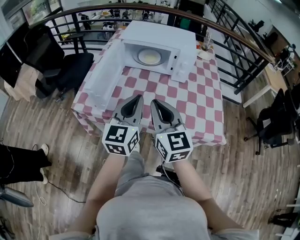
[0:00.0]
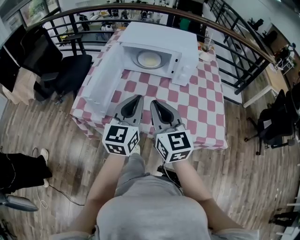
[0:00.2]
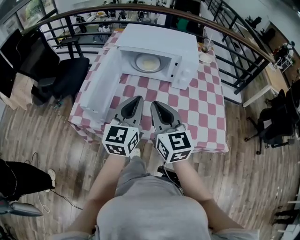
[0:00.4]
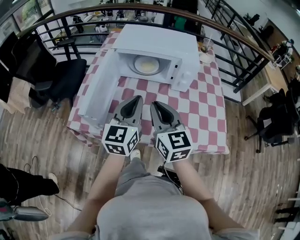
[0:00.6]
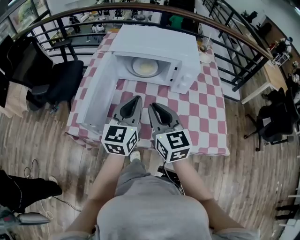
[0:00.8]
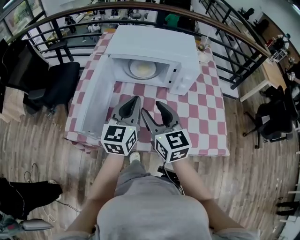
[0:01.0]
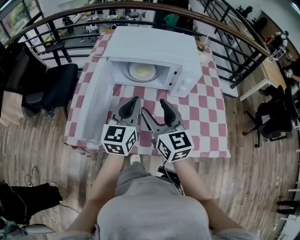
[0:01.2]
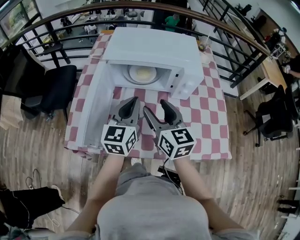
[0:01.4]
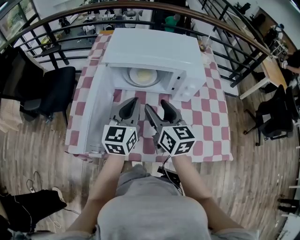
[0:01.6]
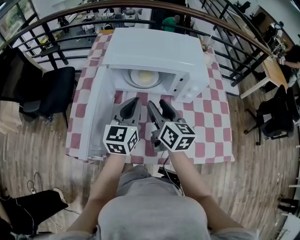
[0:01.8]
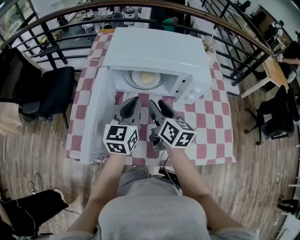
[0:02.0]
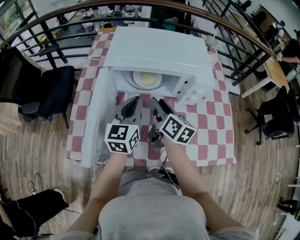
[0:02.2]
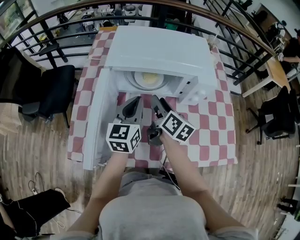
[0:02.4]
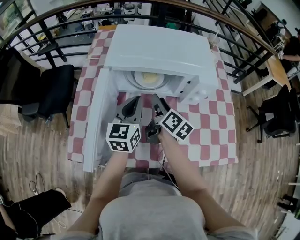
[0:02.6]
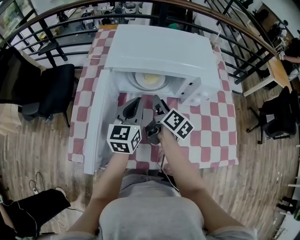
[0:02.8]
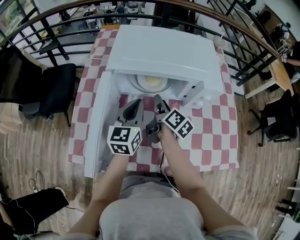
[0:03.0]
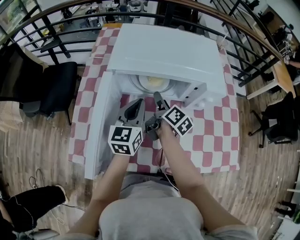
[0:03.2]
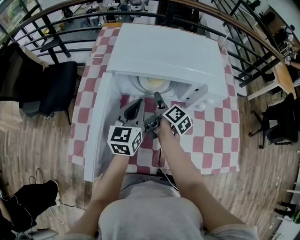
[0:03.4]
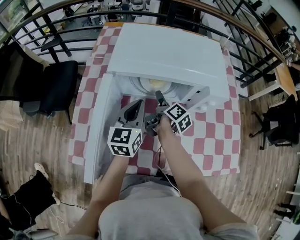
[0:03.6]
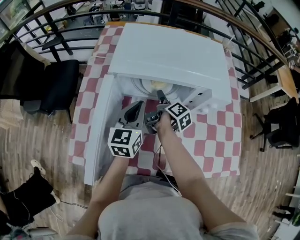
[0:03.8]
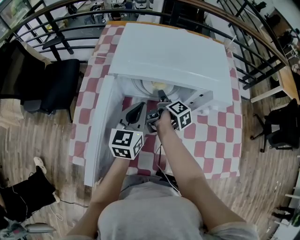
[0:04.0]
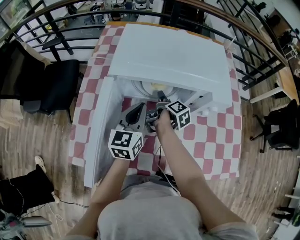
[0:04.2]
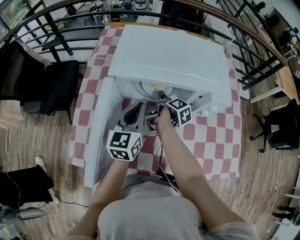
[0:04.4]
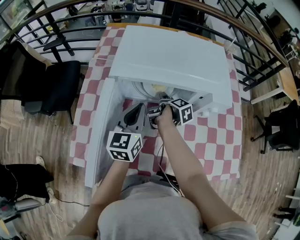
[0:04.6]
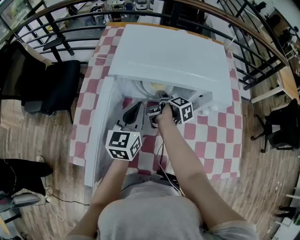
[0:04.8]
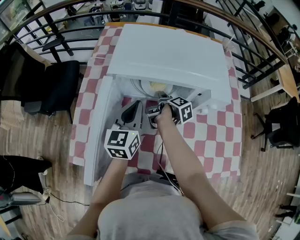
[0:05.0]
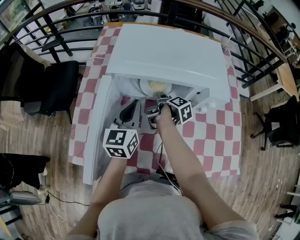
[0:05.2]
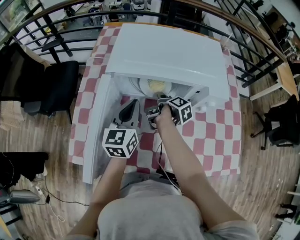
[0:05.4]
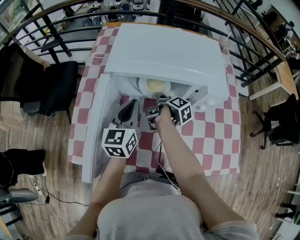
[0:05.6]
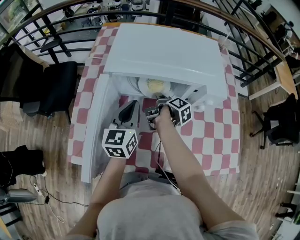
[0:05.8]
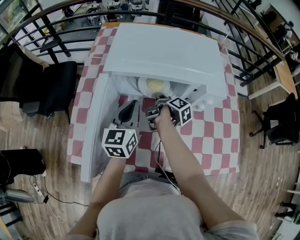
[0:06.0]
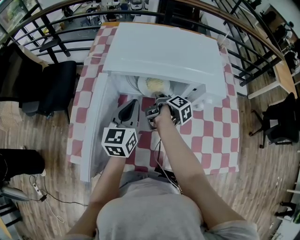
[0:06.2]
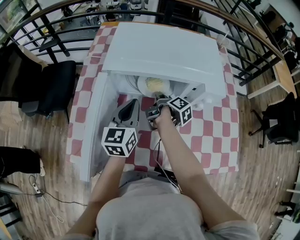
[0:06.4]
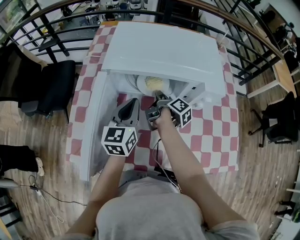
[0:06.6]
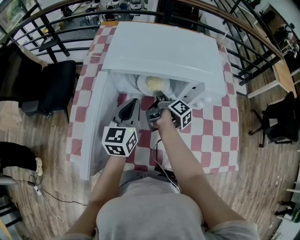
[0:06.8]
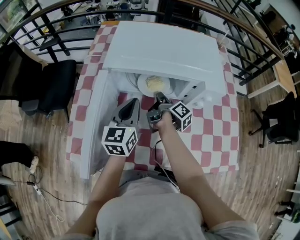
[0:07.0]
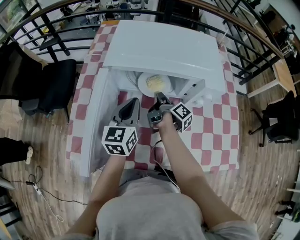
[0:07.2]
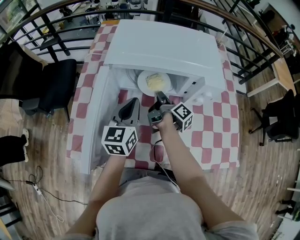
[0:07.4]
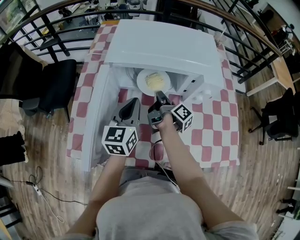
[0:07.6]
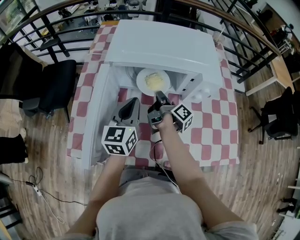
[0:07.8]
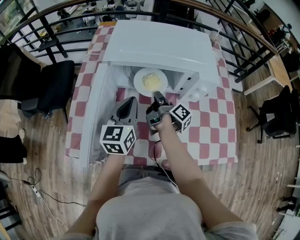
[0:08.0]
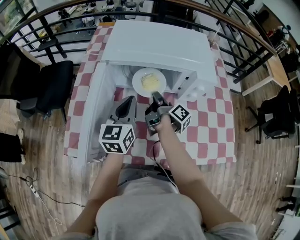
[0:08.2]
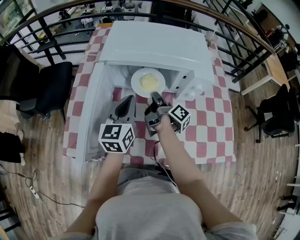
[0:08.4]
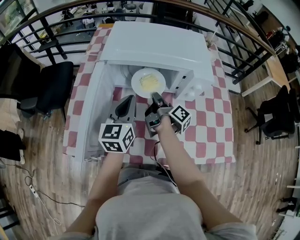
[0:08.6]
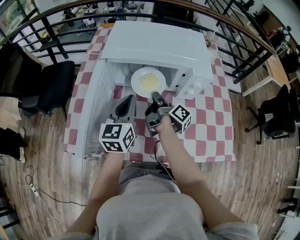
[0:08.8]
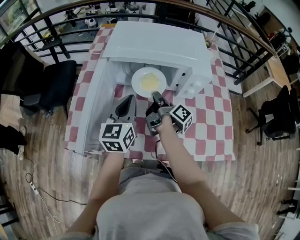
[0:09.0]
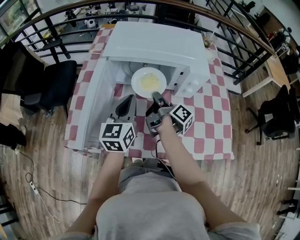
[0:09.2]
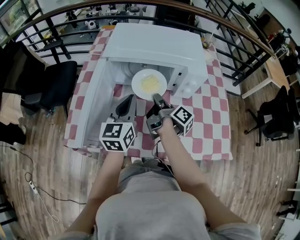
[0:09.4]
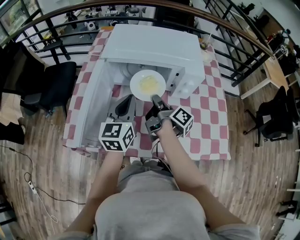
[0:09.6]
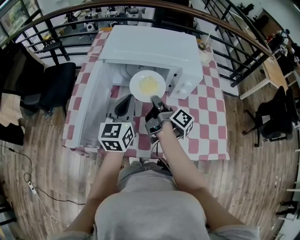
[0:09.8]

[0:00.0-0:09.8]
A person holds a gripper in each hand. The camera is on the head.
0:00.0 to 0:01.4: The grippers both shift forward by about 20 cm. The right gripper opens its fingers.
0:01.4 to 0:02.8: The left gripper heads forward and downward, covering about 10 cm. Meanwhile the right gripper travels forward and downward by some 20 cm, and twists approximately 50 degrees clockwise, seen from behind.
0:02.8 to 0:04.2: The right gripper heads downward and forward, covering approximately 10 cm, and turns by some 30 degrees.
0:04.2 to 0:05.6: The right gripper closes.
0:05.6 to 0:07.0: The grippers make only small movements.
0:07.0 to 0:08.4: The right gripper is displaced backward by roughly 5 cm.
0:08.4 to 0:09.8: The right gripper is displaced upward and backward by approximately 10 cm, while the left gripper ends up approximately 5 cm from where it was.

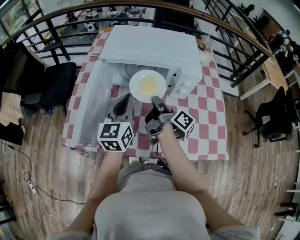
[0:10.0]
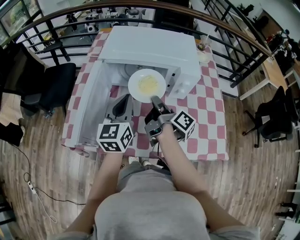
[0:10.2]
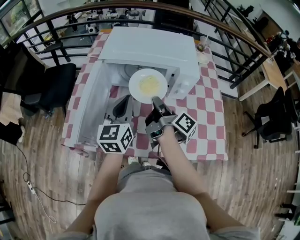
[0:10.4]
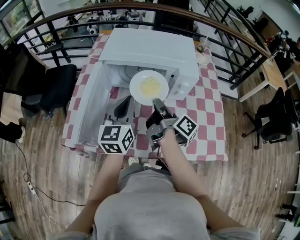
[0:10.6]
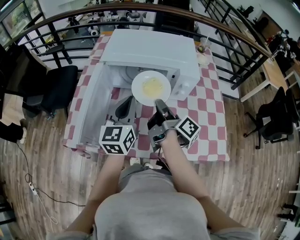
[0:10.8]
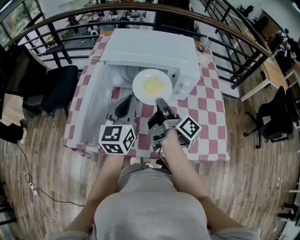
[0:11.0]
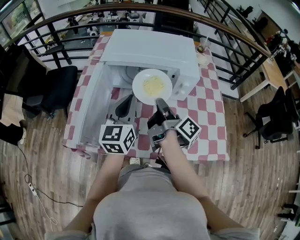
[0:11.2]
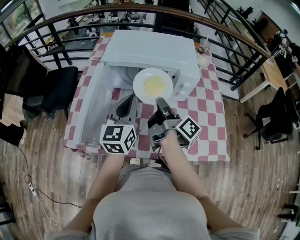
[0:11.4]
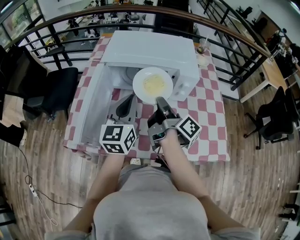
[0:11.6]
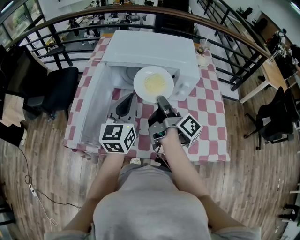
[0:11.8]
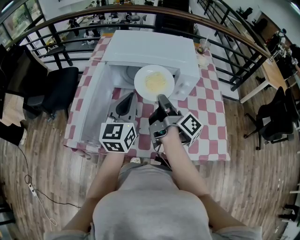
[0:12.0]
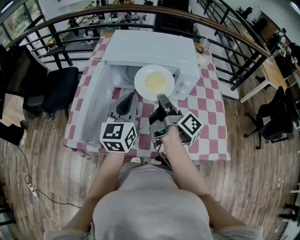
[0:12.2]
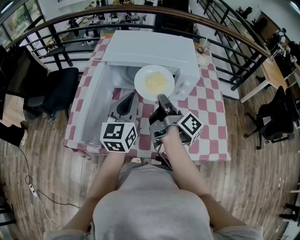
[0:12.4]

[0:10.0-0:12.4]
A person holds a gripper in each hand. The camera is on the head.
0:10.0 to 0:11.2: The right gripper ends up about 5 cm from where it was.
0:11.2 to 0:12.4: The grippers stay close to where they were, moving slightly.

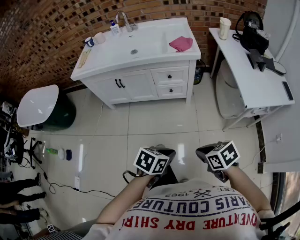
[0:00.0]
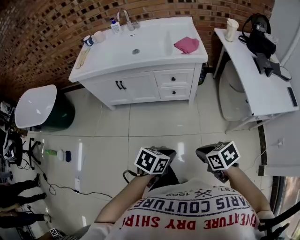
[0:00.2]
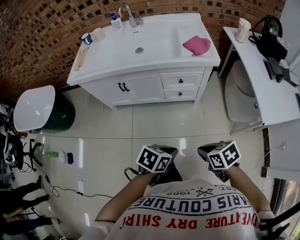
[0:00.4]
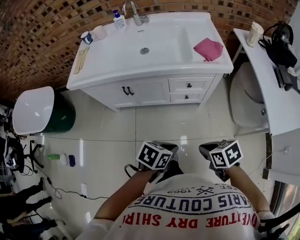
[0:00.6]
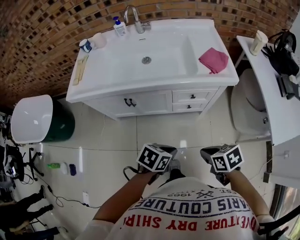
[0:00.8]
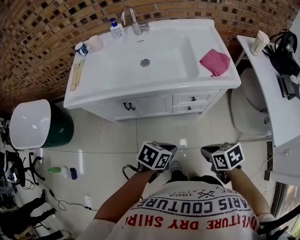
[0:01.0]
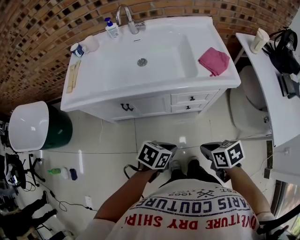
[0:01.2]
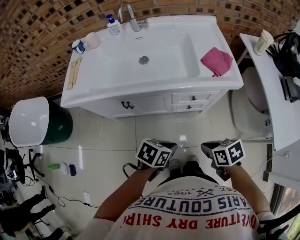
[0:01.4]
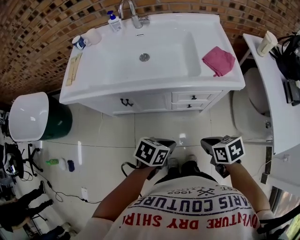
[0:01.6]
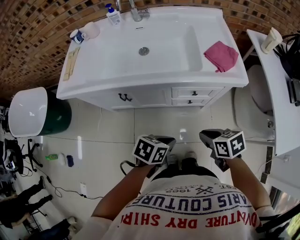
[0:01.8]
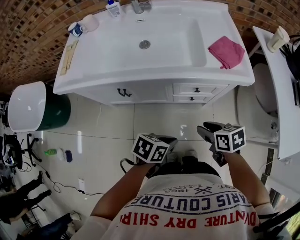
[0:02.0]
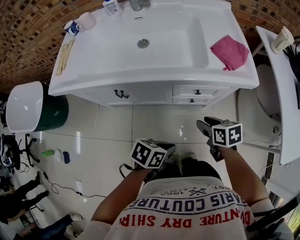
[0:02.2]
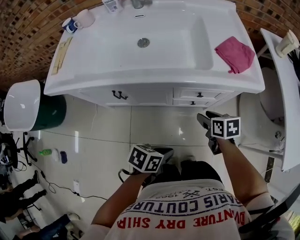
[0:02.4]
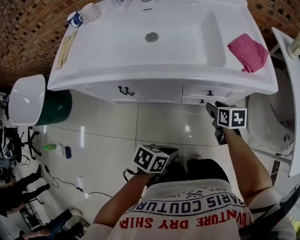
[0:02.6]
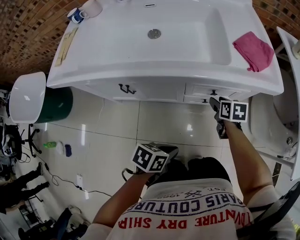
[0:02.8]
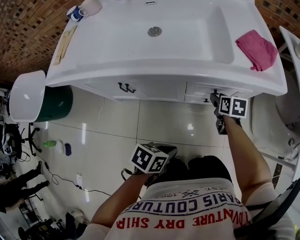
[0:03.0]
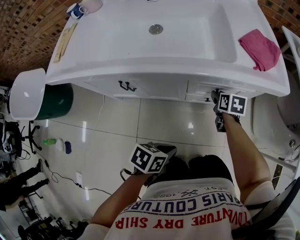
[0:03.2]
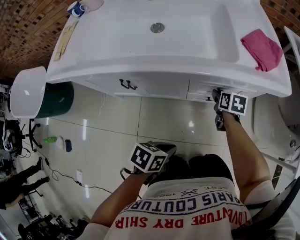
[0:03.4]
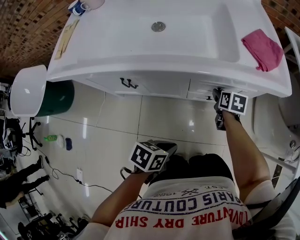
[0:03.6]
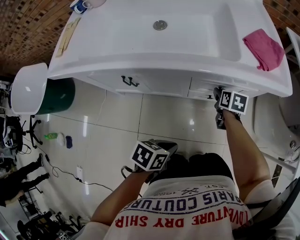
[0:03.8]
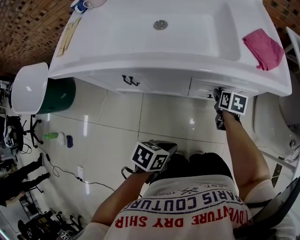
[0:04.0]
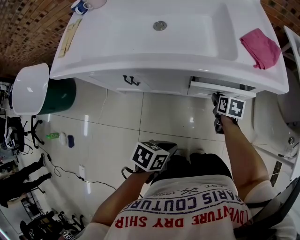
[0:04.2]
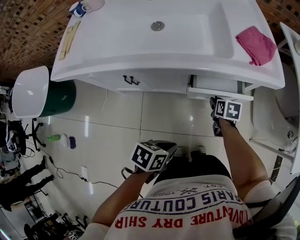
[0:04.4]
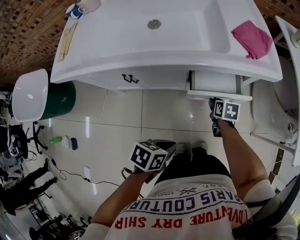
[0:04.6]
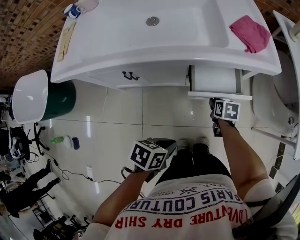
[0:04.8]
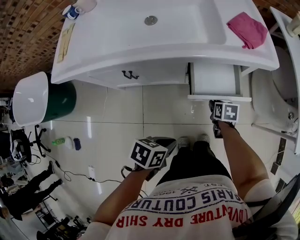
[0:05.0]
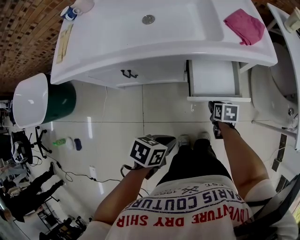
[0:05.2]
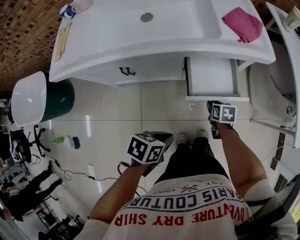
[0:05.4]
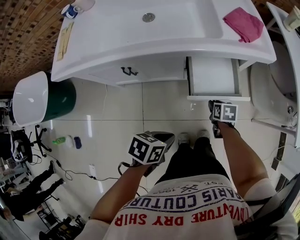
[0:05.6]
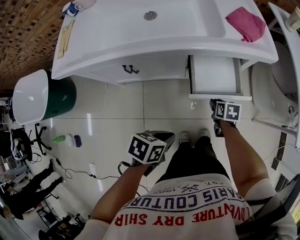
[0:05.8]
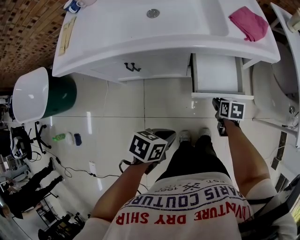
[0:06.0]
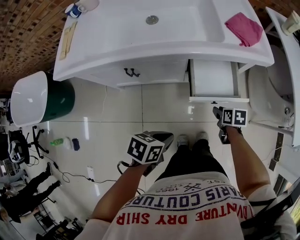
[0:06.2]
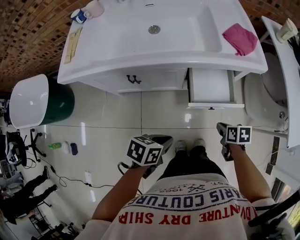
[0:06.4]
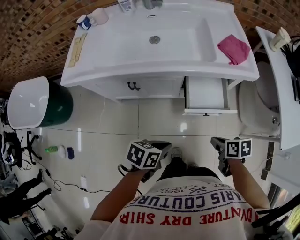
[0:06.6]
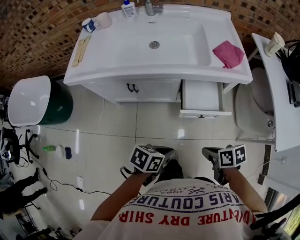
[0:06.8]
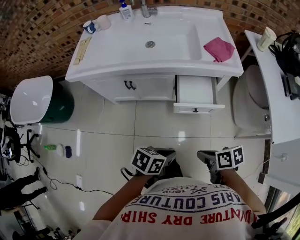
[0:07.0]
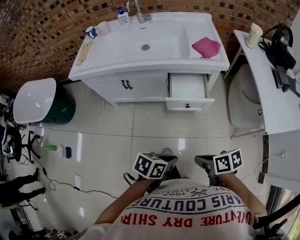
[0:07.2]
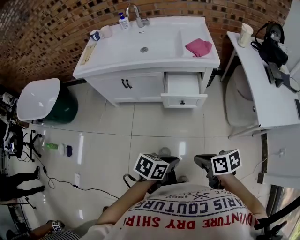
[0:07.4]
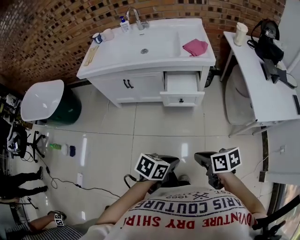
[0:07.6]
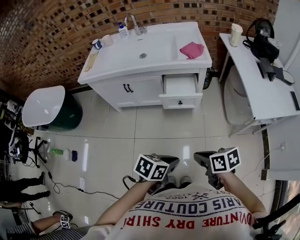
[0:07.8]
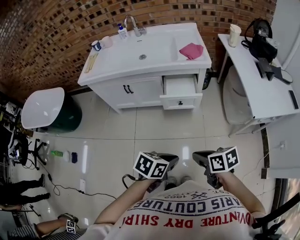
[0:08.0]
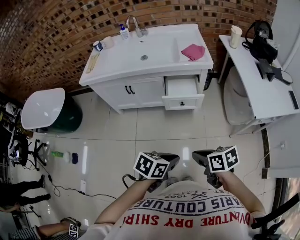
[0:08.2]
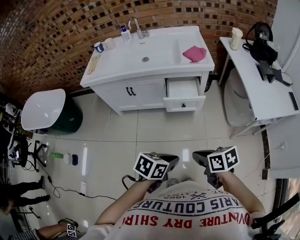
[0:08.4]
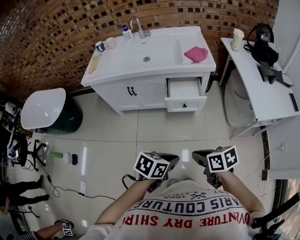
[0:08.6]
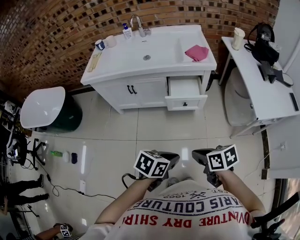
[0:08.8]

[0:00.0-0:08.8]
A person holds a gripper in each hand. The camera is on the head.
0:00.0 to 0:01.4: The left gripper moves approximately 40 cm; the right gripper ends up roughly 40 cm from where it was.
0:01.4 to 0:03.0: The right gripper ends up approximately 35 cm from where it was, changes its angle by about 20 degrees, and opens. The left gripper shifts approximately 15 cm downward.
0:03.0 to 0:04.4: The right gripper travels backward by approximately 5 cm.
0:04.4 to 0:05.8: The left gripper changes place by approximately 5 cm. The right gripper goes about 10 cm backward.
0:05.8 to 0:07.4: The right gripper moves about 50 cm, rotates roughly 30 degrees, and closes. Meanwhile the left gripper shifts by approximately 35 cm.
0:07.4 to 0:08.8: Both grippers travel together upward, approximately 5 cm.

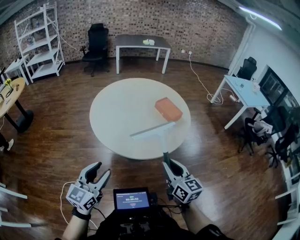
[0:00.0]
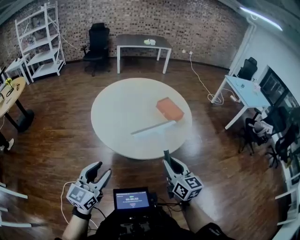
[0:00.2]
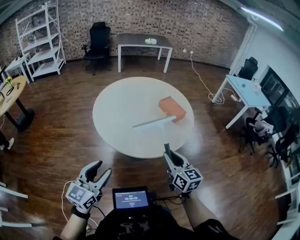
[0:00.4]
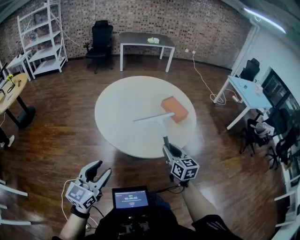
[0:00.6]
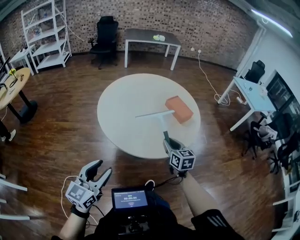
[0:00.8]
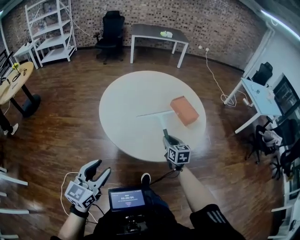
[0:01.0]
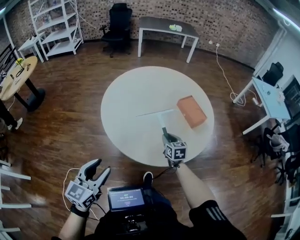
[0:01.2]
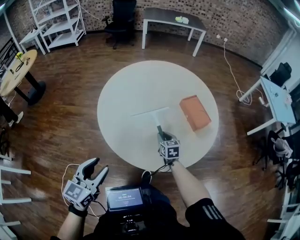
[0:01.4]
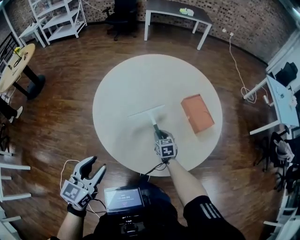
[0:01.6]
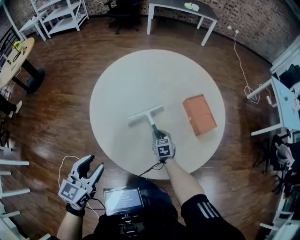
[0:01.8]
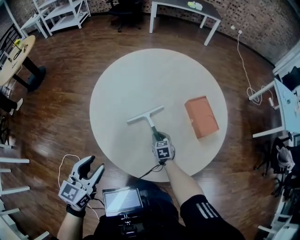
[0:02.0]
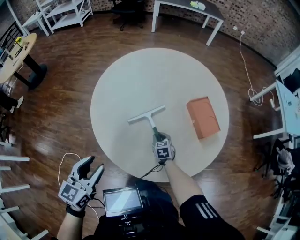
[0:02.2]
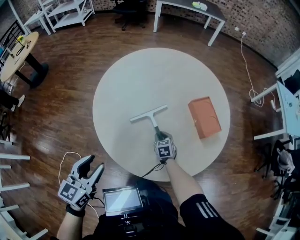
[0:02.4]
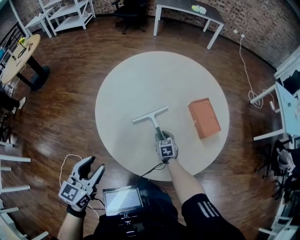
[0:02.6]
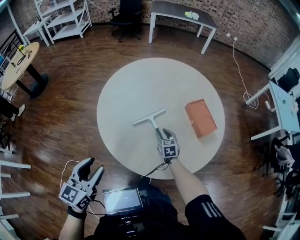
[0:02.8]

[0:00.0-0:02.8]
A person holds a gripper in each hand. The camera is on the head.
0:00.0 to 0:01.4: The left gripper goes approximately 20 cm forward and downward; the right gripper goes approximately 50 cm forward and downward, and rotates about 30 degrees.
0:01.4 to 0:02.8: The right gripper heads forward, covering approximately 5 cm.
